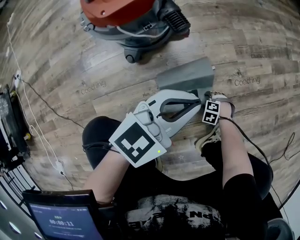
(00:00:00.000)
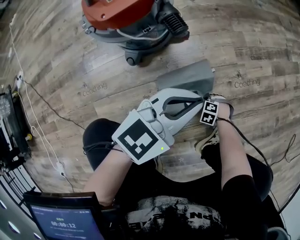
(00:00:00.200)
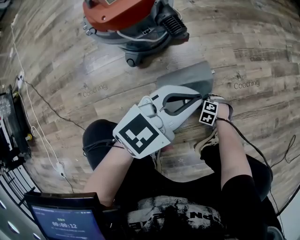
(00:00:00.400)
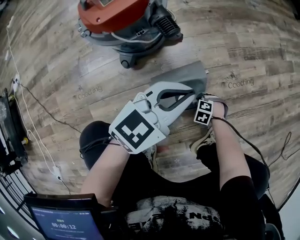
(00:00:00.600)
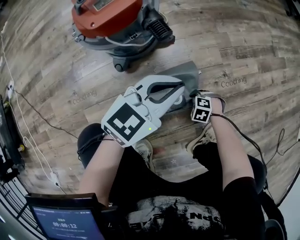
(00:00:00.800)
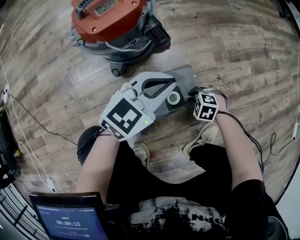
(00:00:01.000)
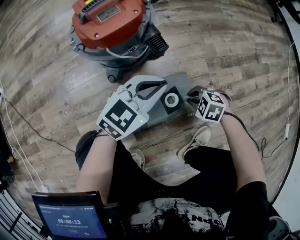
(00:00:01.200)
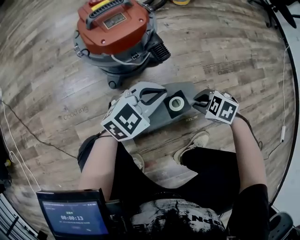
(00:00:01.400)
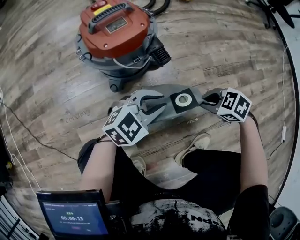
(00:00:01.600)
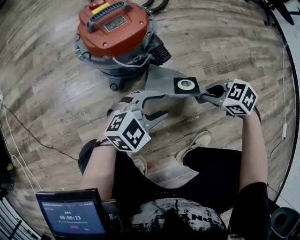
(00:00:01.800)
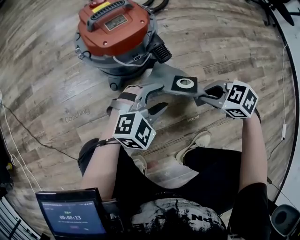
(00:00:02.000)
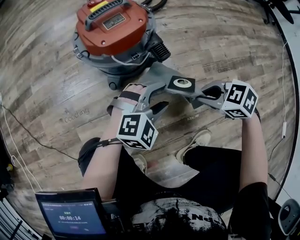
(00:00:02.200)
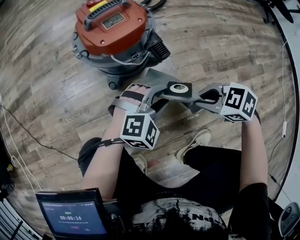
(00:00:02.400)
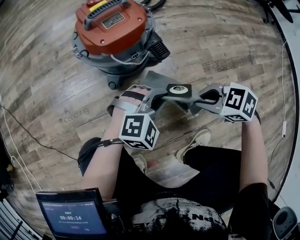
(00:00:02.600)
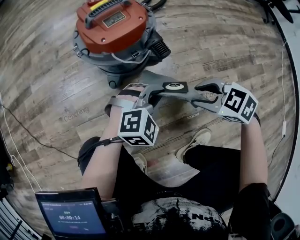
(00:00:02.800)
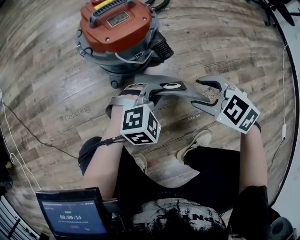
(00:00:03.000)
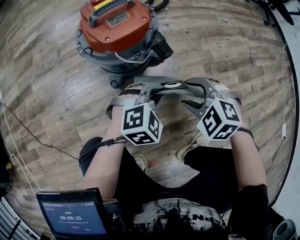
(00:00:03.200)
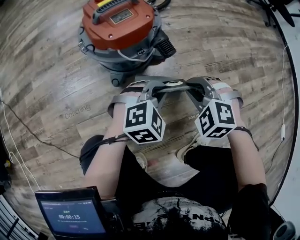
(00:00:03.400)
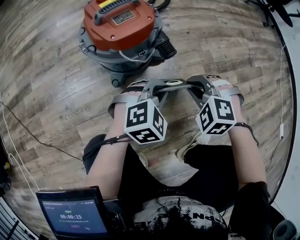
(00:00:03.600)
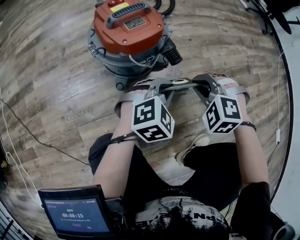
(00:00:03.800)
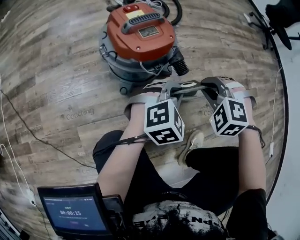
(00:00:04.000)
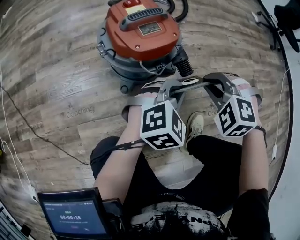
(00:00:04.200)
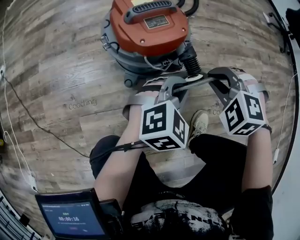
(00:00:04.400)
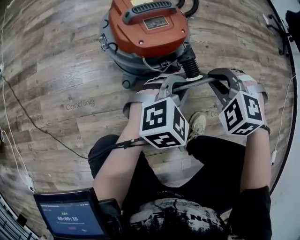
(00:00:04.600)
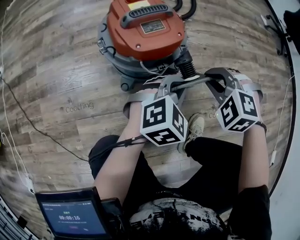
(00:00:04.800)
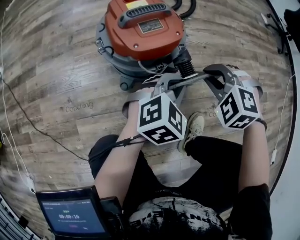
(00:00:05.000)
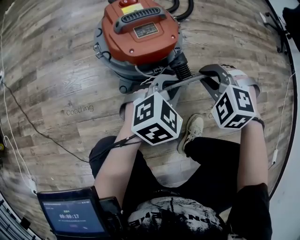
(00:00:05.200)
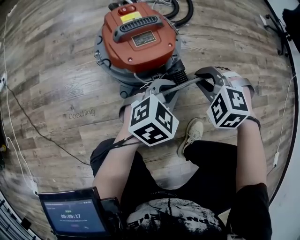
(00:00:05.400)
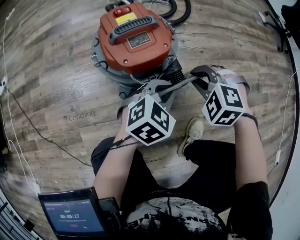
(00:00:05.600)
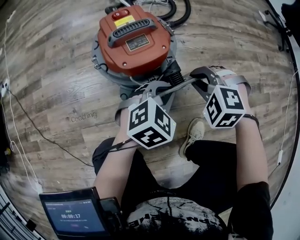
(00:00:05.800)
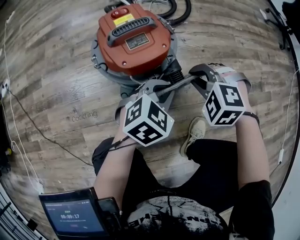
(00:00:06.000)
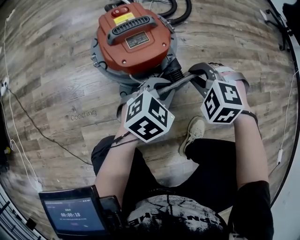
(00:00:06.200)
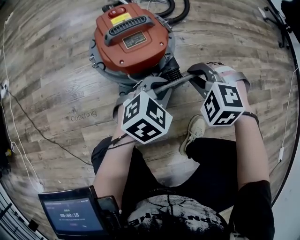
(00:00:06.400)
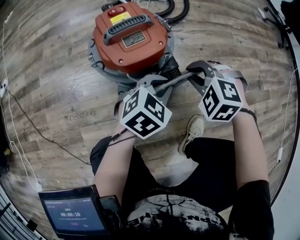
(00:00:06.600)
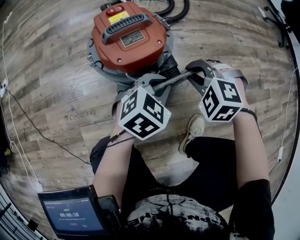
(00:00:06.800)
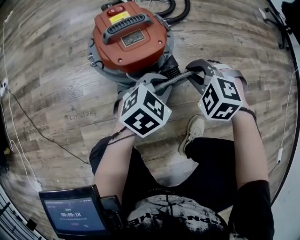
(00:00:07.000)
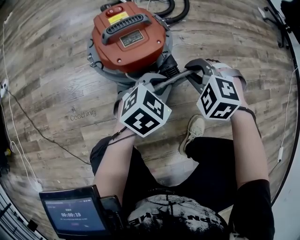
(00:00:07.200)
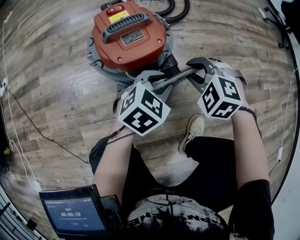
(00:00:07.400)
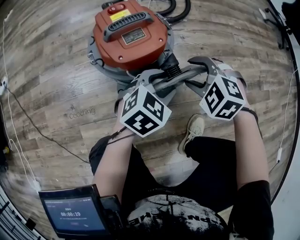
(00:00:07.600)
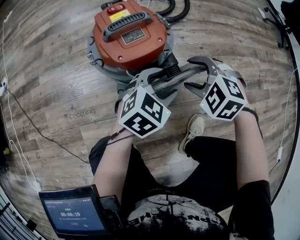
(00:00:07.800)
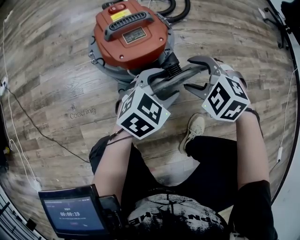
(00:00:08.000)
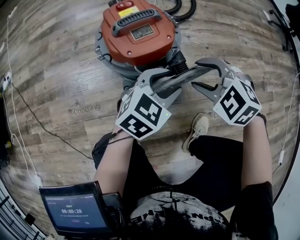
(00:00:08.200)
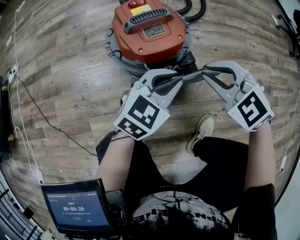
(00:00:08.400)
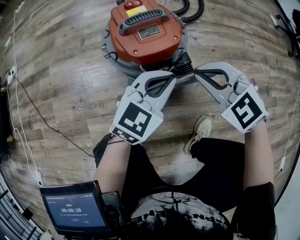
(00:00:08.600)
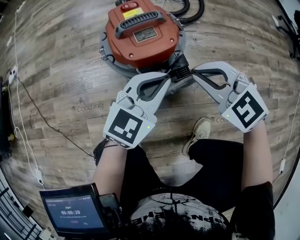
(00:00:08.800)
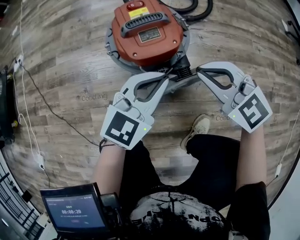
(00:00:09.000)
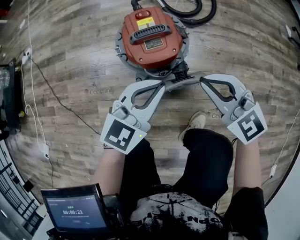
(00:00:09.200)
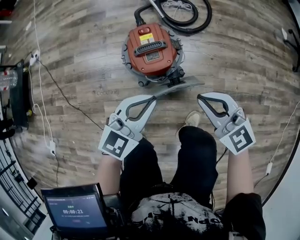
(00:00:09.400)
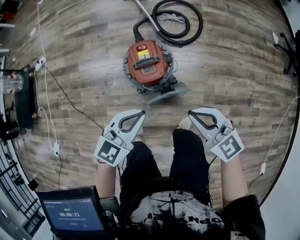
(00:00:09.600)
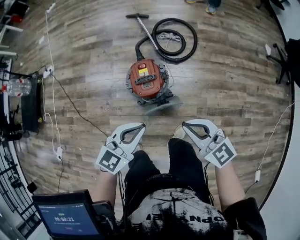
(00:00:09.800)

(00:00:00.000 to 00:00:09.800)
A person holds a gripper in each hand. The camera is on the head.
00:00:00.000 - 00:00:01.400: The right gripper moves upward, about 25 cm, changes its angle by roughly 20 degrees, and closes. Meanwhile the left gripper shifts by approximately 10 cm.
00:00:01.400 - 00:00:02.800: The right gripper travels upward by some 10 cm, and opens its fingers; the left gripper swivels approximately 30 degrees, and opens, then closes once more.
00:00:02.800 - 00:00:04.200: The left gripper shifts by approximately 10 cm. The right gripper changes place by about 15 cm, rotates about 50 degrees, and closes.
00:00:04.200 - 00:00:05.600: The right gripper moves forward, roughly 5 cm.
00:00:05.600 - 00:00:07.000: The grippers make only small movements.
00:00:07.000 - 00:00:08.400: The right gripper moves upward, approximately 5 cm, rotates some 20 degrees, and opens, then closes once more; the left gripper shifts by about 5 cm, and opens and closes again.
00:00:08.400 - 00:00:09.800: Both grippers move upward, approximately 40 cm. The right gripper tilts its fingers approximately 40 degrees upward.

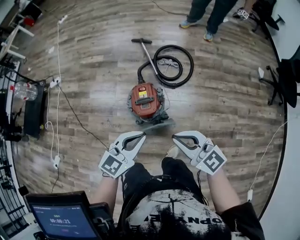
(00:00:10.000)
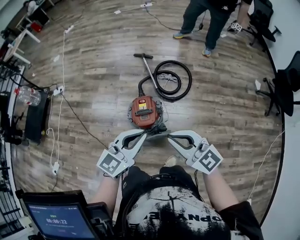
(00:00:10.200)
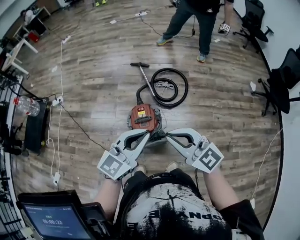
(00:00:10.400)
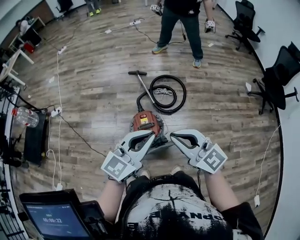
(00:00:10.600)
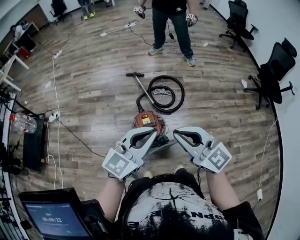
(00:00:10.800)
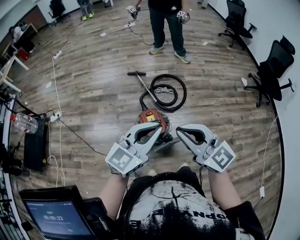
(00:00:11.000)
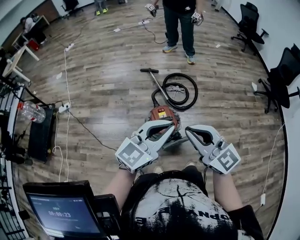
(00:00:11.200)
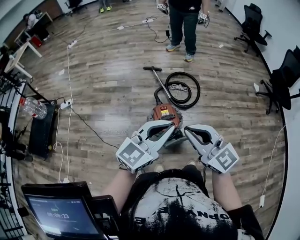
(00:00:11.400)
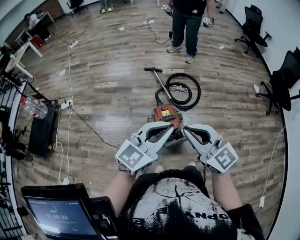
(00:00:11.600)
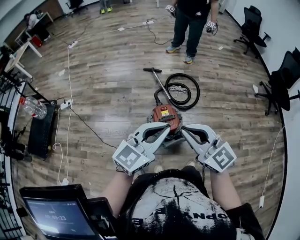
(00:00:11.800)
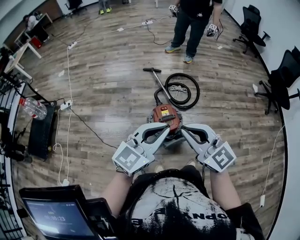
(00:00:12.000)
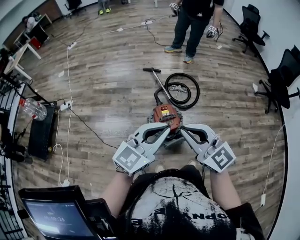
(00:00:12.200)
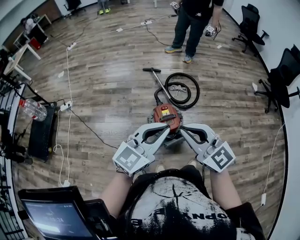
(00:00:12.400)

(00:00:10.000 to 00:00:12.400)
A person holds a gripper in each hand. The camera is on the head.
00:00:10.000 - 00:00:11.200: The right gripper shifts approximately 20 cm to the left and upward; the left gripper goes approximately 15 cm upward and to the left.
00:00:11.200 - 00:00:12.400: The right gripper goes roughly 5 cm to the left. The left gripper shifts by approximately 5 cm.

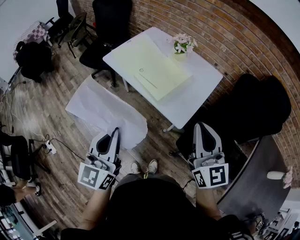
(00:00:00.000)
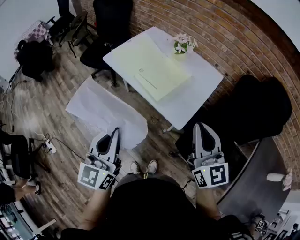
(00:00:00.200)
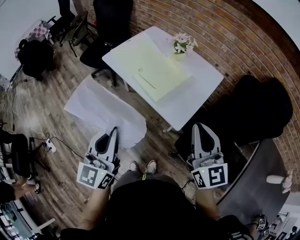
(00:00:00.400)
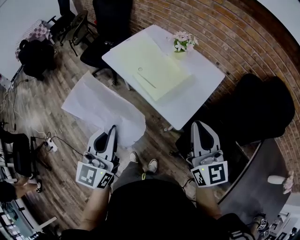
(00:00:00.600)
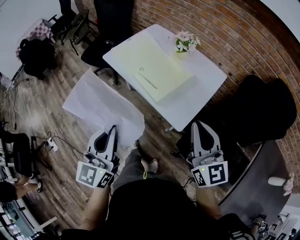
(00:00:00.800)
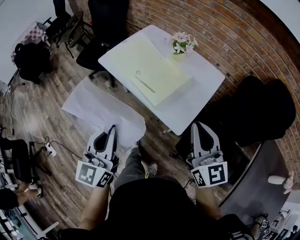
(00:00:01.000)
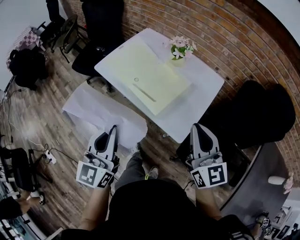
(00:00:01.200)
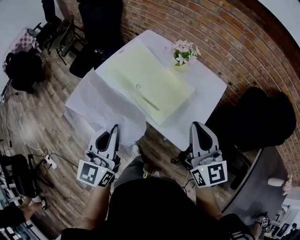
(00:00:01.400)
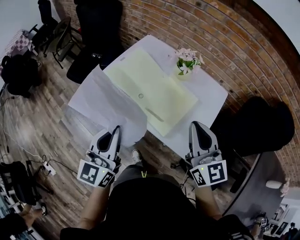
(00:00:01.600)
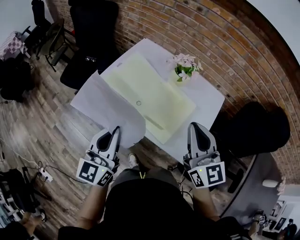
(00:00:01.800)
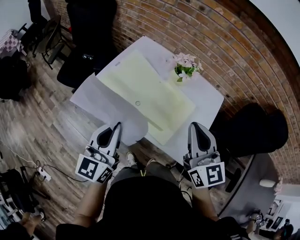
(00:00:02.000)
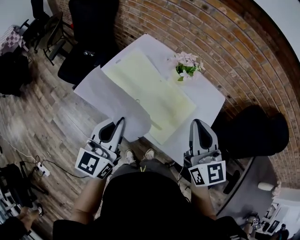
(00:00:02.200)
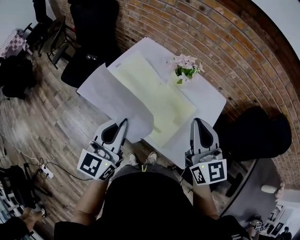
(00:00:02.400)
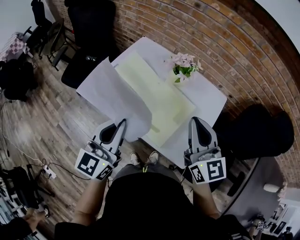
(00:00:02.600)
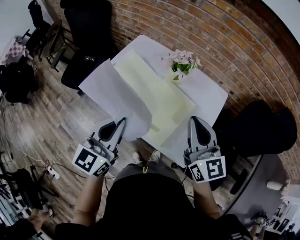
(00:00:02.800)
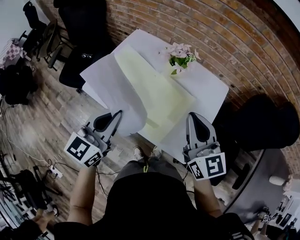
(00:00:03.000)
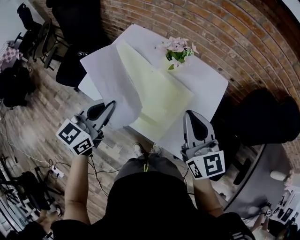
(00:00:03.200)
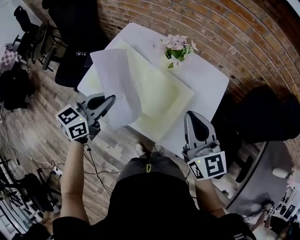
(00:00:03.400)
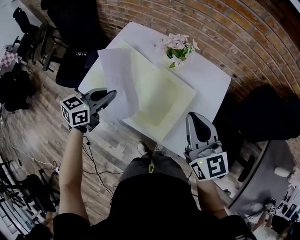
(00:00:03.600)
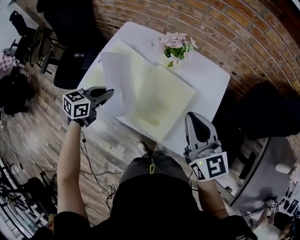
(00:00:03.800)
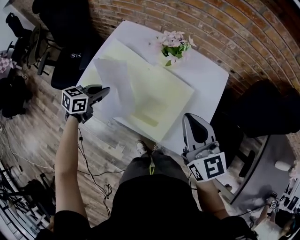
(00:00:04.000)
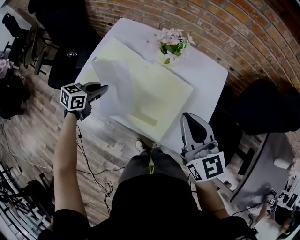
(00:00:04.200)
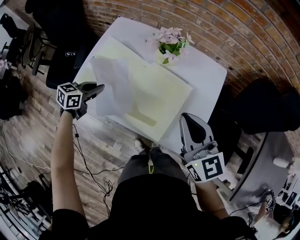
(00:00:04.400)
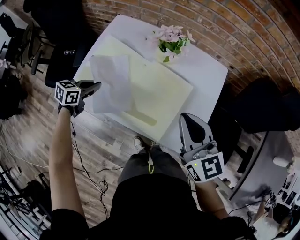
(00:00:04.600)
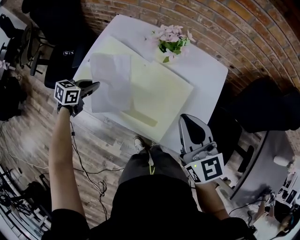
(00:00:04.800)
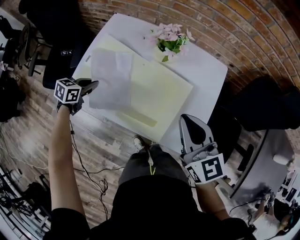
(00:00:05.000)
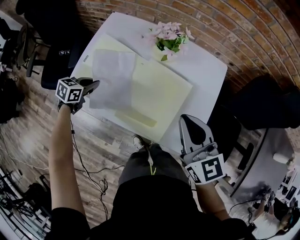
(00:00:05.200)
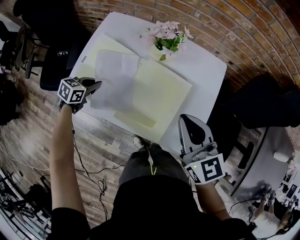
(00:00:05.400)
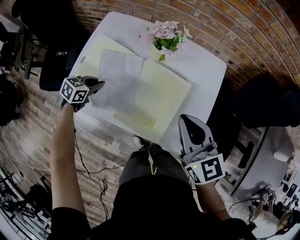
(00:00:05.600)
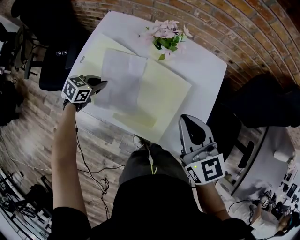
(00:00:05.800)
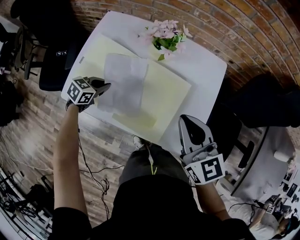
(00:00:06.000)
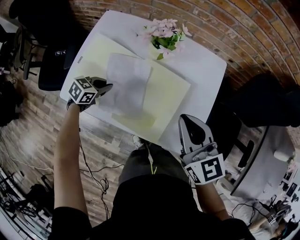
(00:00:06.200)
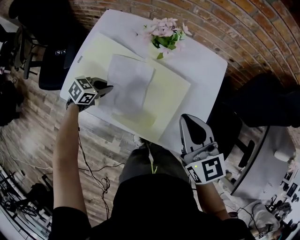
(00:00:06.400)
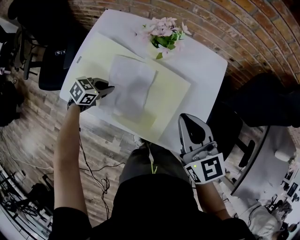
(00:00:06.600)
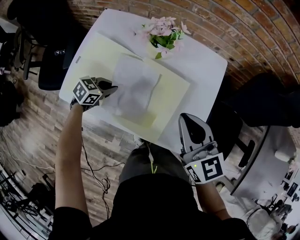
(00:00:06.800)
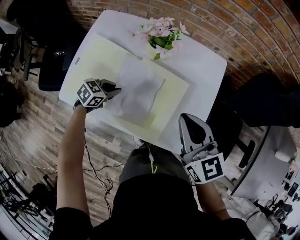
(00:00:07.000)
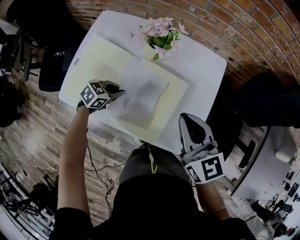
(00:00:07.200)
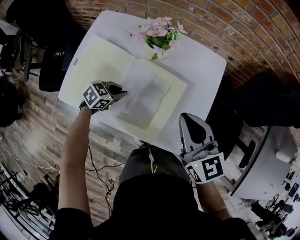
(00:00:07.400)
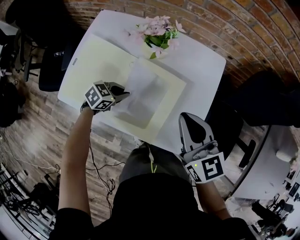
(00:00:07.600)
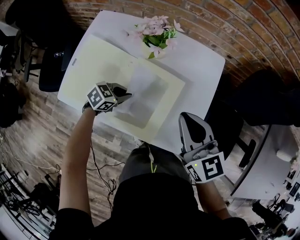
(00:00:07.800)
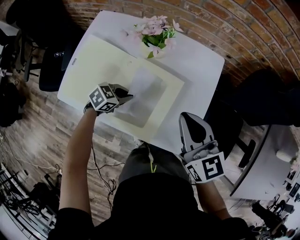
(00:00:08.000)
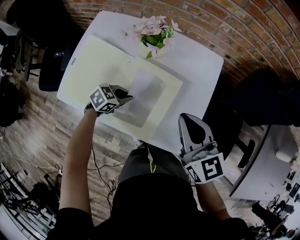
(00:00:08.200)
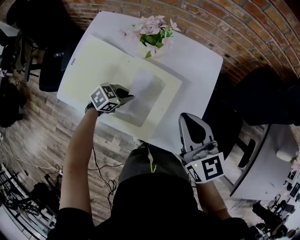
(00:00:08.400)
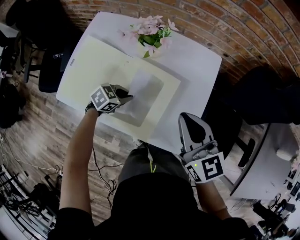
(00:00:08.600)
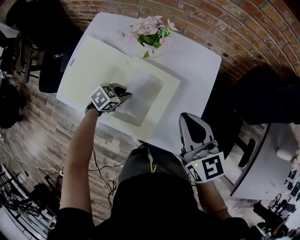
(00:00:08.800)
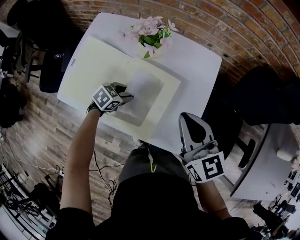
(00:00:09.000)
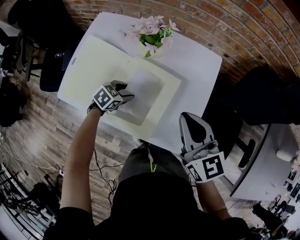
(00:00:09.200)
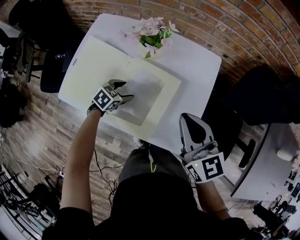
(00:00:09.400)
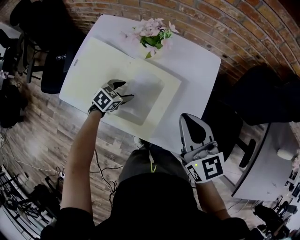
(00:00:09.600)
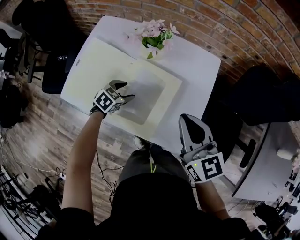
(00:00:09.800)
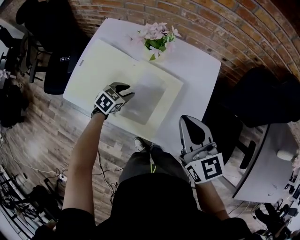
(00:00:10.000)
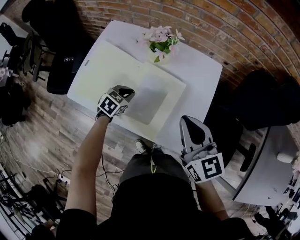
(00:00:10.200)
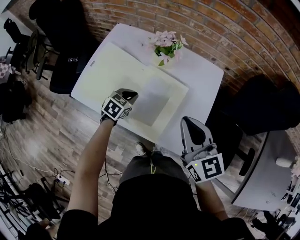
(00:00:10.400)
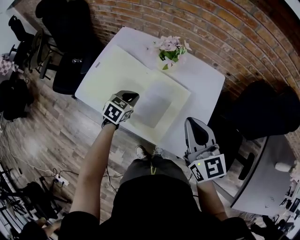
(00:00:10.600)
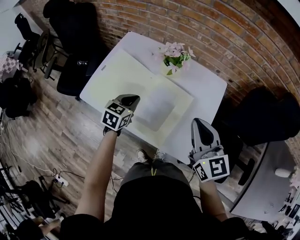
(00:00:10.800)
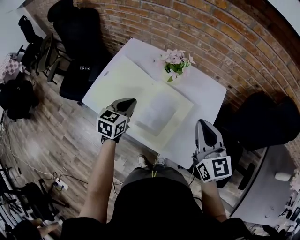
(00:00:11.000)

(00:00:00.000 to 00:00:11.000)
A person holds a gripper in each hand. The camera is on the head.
00:00:00.000 - 00:00:01.600: The grippers both shift forward by approximately 25 cm.
00:00:01.600 - 00:00:03.200: The right gripper heads forward, covering about 10 cm, while the left gripper travels forward by about 15 cm, and rotates roughly 30 degrees.
00:00:03.200 - 00:00:04.800: The left gripper travels downward, to the left and forward by roughly 30 cm, and swivels approximately 40 degrees.
00:00:04.800 - 00:00:06.200: The left gripper shifts approximately 10 cm to the right and downward.
00:00:06.200 - 00:00:07.800: The left gripper is displaced to the right by approximately 15 cm.
00:00:07.800 - 00:00:09.400: The left gripper opens up.
00:00:09.400 - 00:00:11.000: The right gripper shifts roughly 5 cm upward. The left gripper is displaced upward by about 20 cm, changes its angle by approximately 40 degrees, and closes its fingers.
